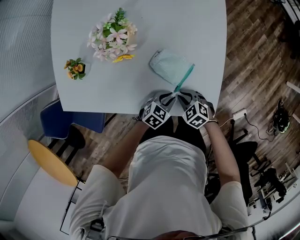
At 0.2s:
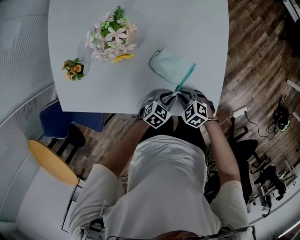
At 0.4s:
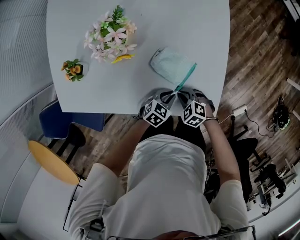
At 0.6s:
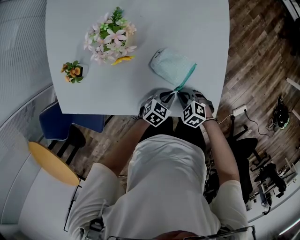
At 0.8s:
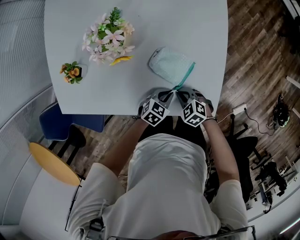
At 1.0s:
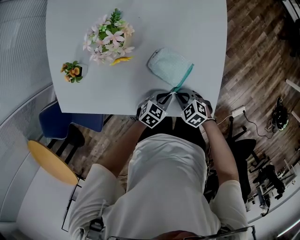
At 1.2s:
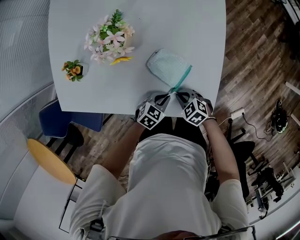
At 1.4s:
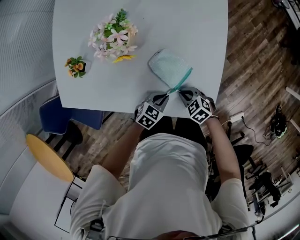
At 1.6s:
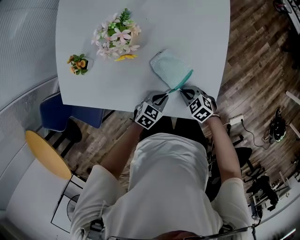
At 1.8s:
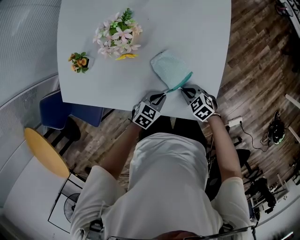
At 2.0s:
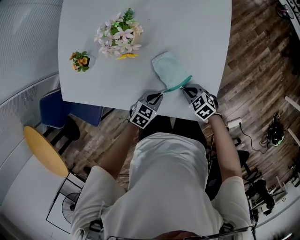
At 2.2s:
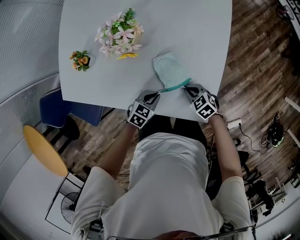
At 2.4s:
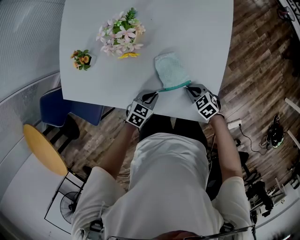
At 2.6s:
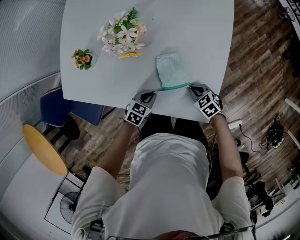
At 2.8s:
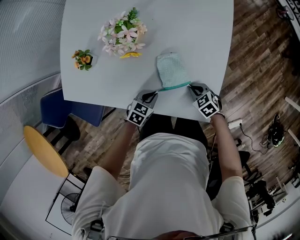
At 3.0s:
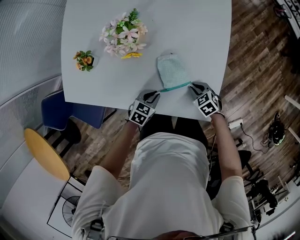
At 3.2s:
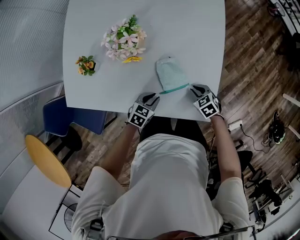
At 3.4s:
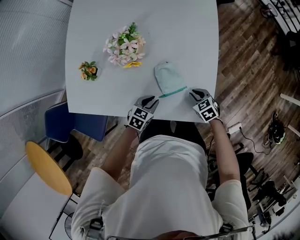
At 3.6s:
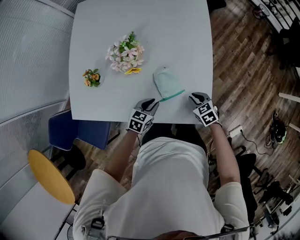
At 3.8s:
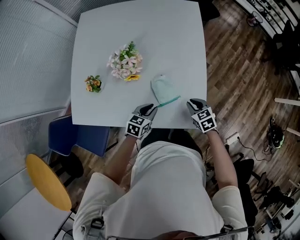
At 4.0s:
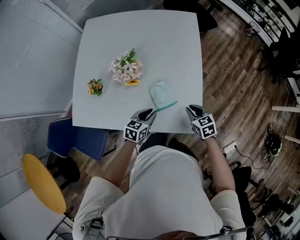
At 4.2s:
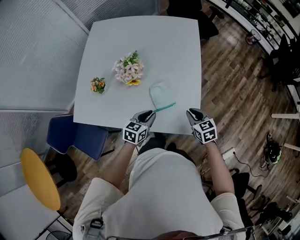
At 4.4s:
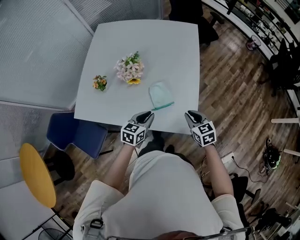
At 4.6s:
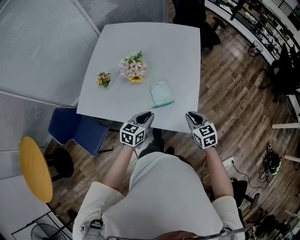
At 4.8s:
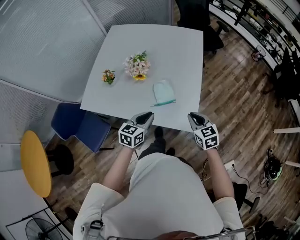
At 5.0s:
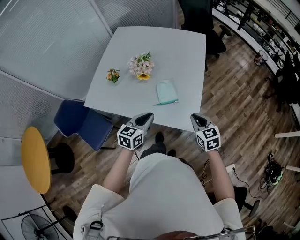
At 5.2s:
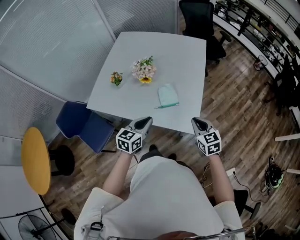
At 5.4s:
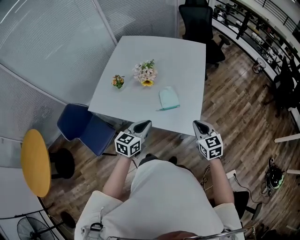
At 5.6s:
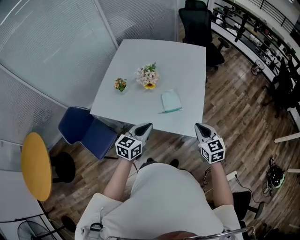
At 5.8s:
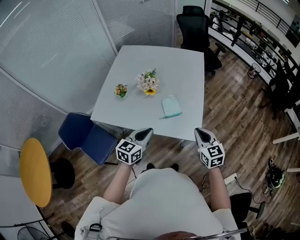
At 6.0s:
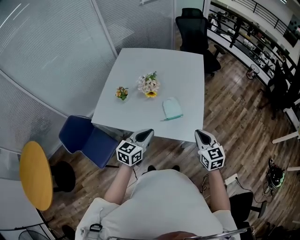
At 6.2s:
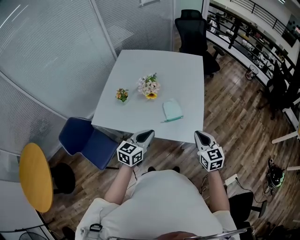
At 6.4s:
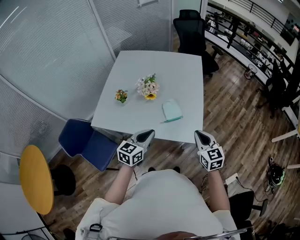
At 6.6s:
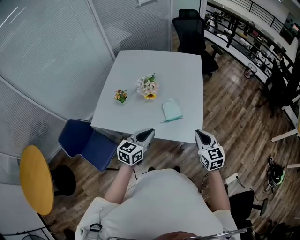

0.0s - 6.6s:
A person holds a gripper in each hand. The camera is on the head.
0.0s - 1.6s: The grippers make only small movements.
1.6s - 3.2s: The left gripper ends up about 5 cm from where it was. The right gripper changes place by about 5 cm.
3.2s - 5.0s: The two grippers go about 35 cm upward and backward. The left gripper rotates some 30 degrees. The right gripper tips its fingers upward by about 30 degrees.
5.0s - 6.6s: The left gripper is displaced upward, to the left and backward by some 10 cm, while the right gripper shifts some 15 cm upward, backward and to the left.

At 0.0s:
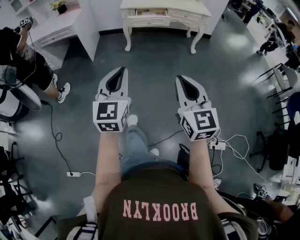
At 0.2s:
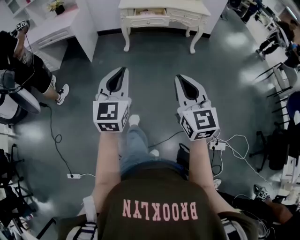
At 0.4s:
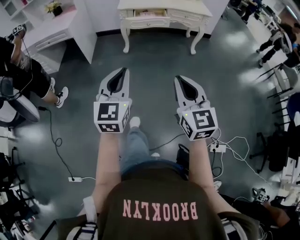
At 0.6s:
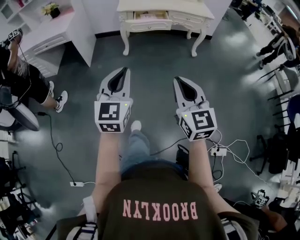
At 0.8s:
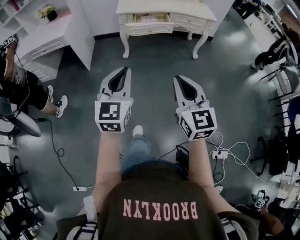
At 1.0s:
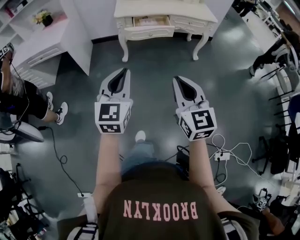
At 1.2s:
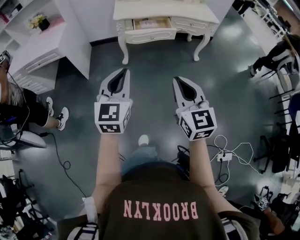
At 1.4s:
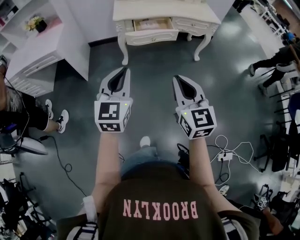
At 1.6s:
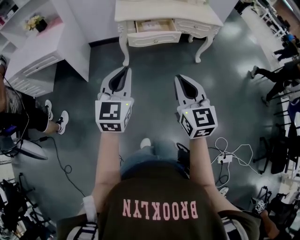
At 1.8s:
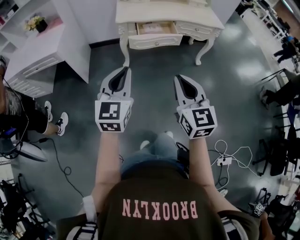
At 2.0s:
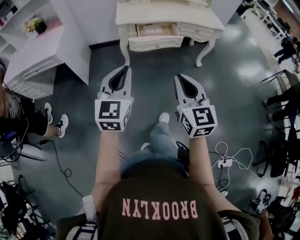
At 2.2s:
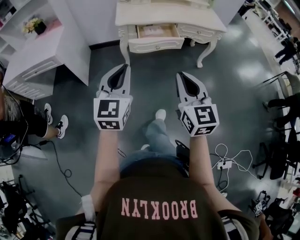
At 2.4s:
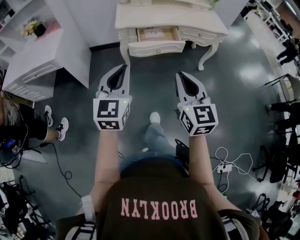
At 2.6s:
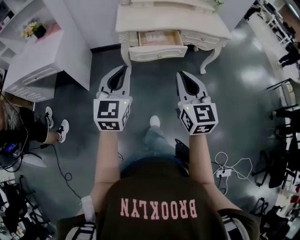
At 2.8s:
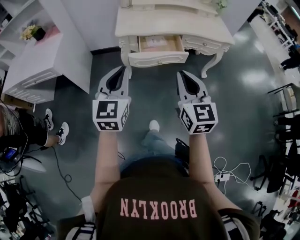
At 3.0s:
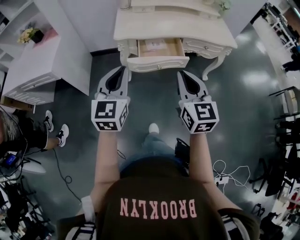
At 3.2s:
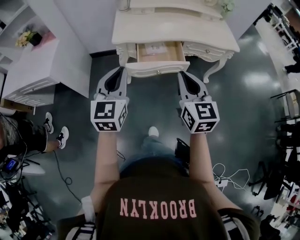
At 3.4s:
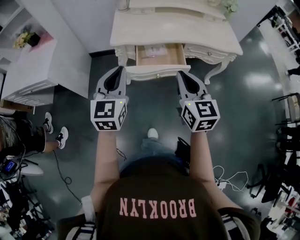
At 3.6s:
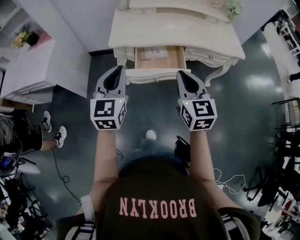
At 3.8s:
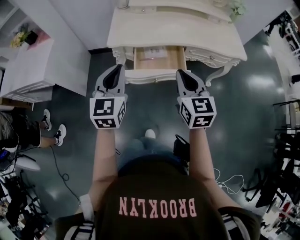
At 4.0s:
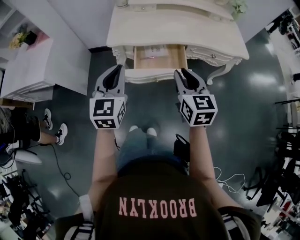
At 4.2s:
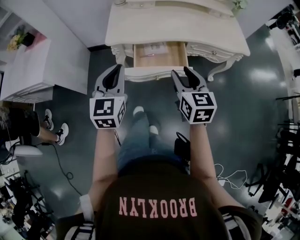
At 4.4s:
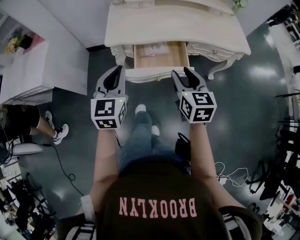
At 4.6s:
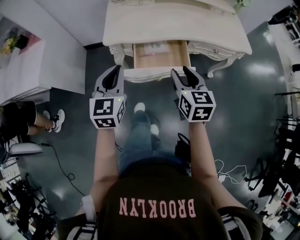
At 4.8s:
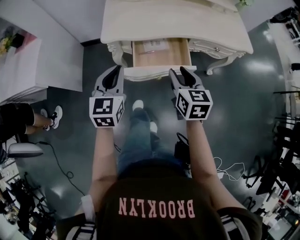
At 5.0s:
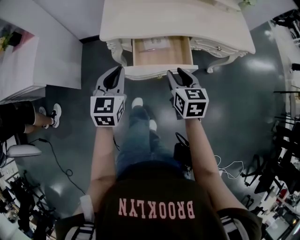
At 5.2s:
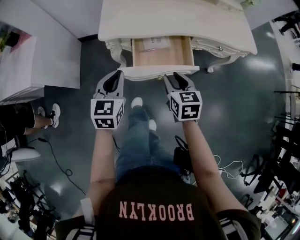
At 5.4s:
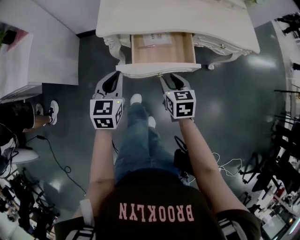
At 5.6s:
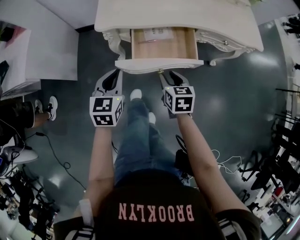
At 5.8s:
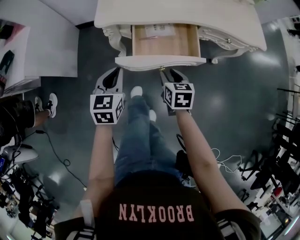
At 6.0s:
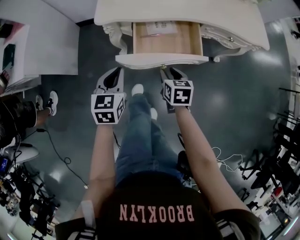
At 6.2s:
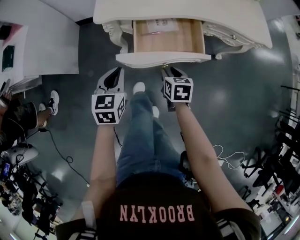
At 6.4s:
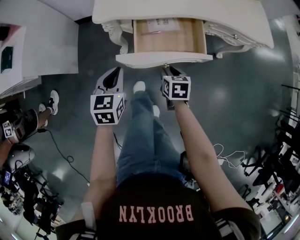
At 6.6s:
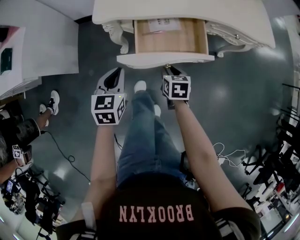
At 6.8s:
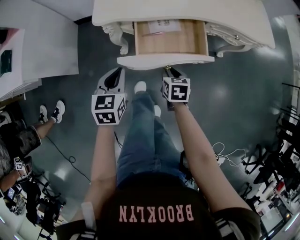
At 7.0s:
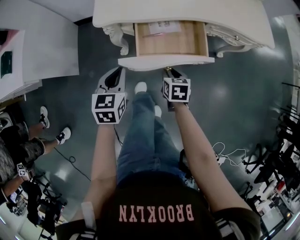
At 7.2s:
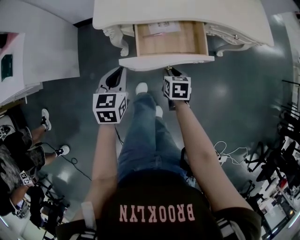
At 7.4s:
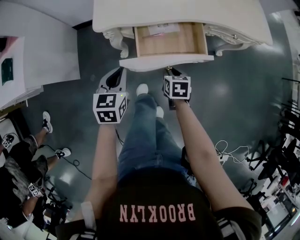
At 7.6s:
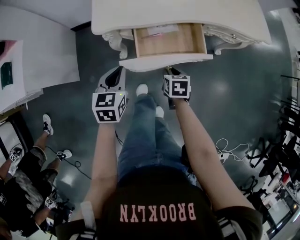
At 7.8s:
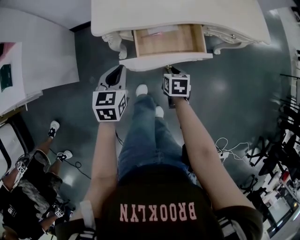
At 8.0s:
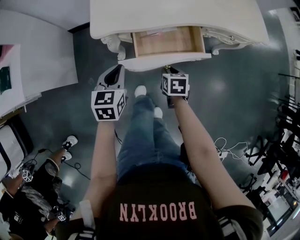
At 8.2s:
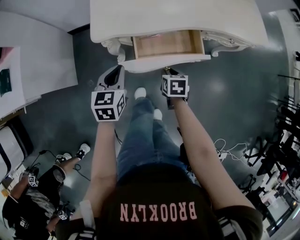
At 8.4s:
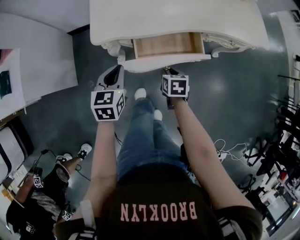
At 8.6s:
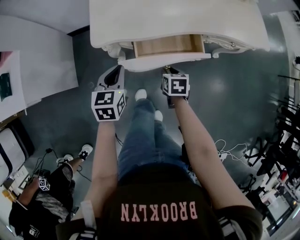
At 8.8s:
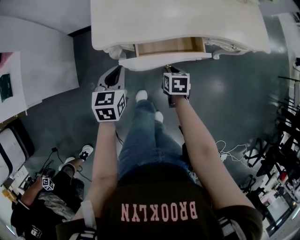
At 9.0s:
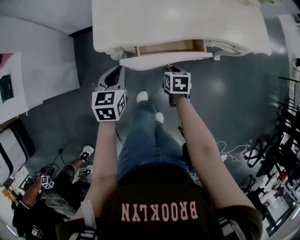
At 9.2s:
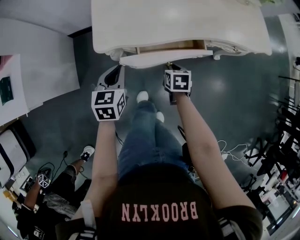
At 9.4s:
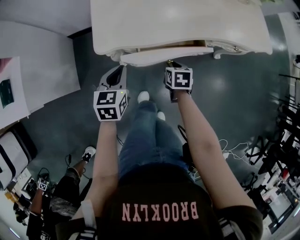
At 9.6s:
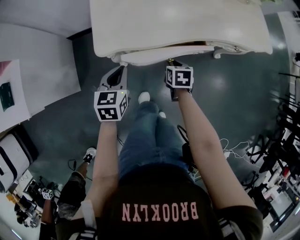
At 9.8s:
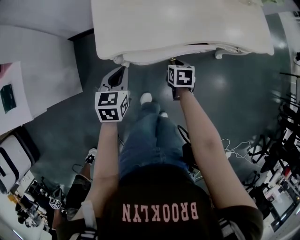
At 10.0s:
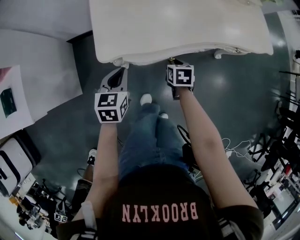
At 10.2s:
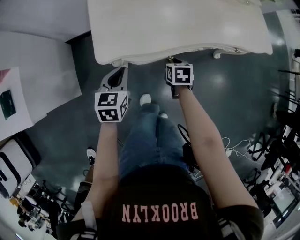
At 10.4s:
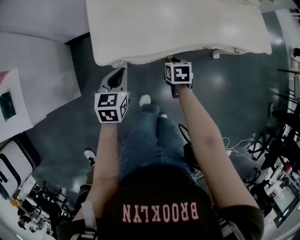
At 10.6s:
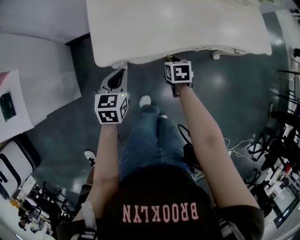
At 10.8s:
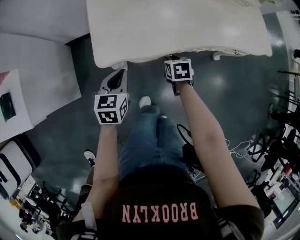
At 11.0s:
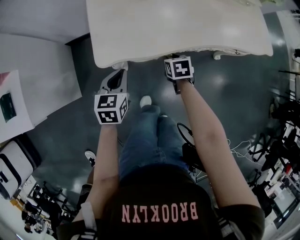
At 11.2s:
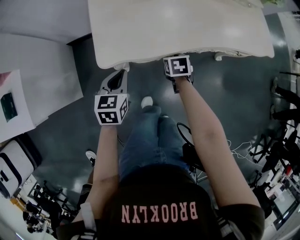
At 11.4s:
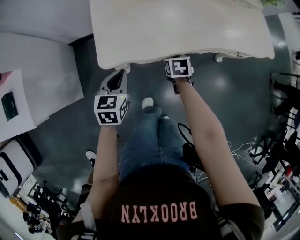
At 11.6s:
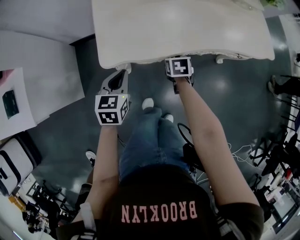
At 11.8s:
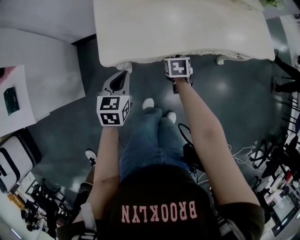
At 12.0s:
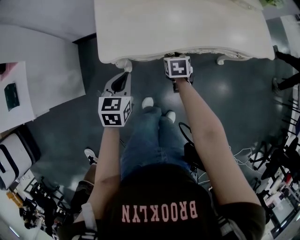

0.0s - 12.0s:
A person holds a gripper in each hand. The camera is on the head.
0.0s - 1.6s: Both grippers travel together forward, approximately 40 cm.
1.6s - 3.0s: The grippers both shift forward by roughly 25 cm.
3.0s - 4.4s: The two grippers go roughly 20 cm forward and downward. The right gripper opens its fingers.
4.4s - 6.0s: The grippers both shift downward by some 20 cm. The right gripper turns by about 30 degrees; the left gripper rotates approximately 20 degrees.
6.0s - 7.6s: The right gripper is displaced downward by about 5 cm, while the left gripper goes about 5 cm forward.
7.6s - 9.0s: Both grippers travel together forward, about 10 cm.
9.0s - 10.4s: The right gripper is displaced forward by some 5 cm.
10.4s - 12.0s: The grippers stay close to where they were, moving slightly.

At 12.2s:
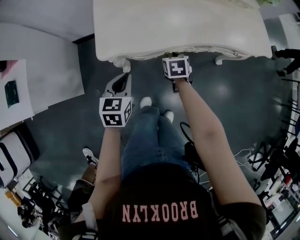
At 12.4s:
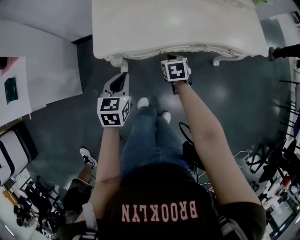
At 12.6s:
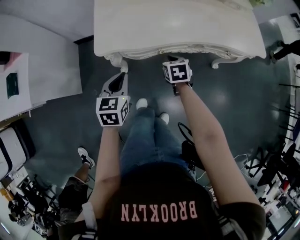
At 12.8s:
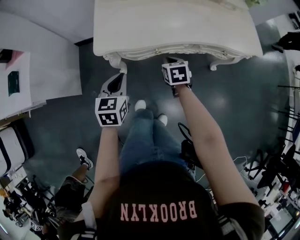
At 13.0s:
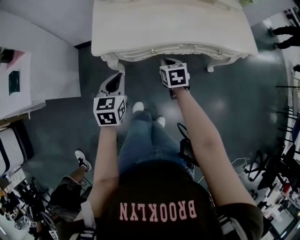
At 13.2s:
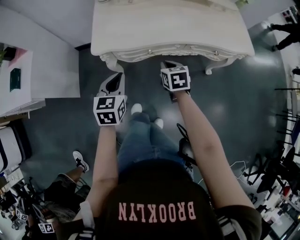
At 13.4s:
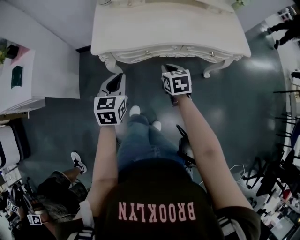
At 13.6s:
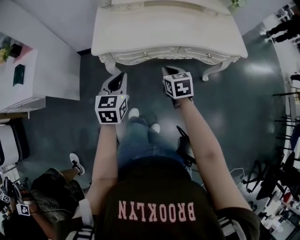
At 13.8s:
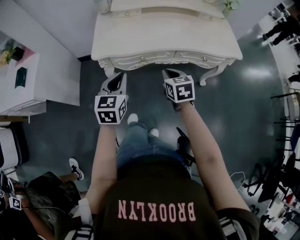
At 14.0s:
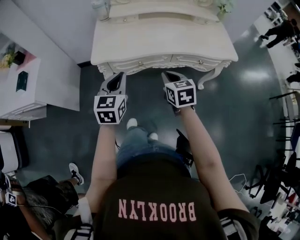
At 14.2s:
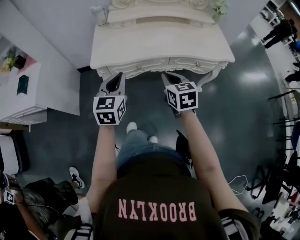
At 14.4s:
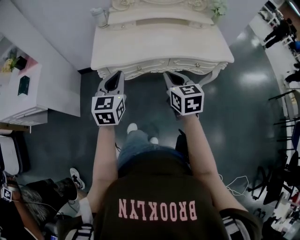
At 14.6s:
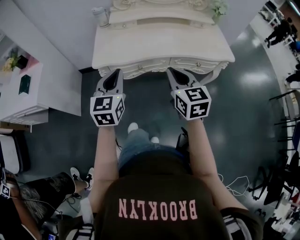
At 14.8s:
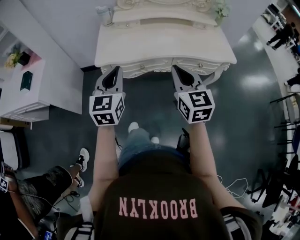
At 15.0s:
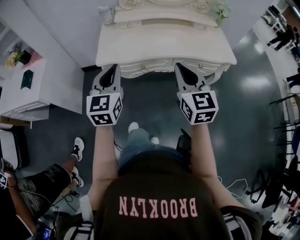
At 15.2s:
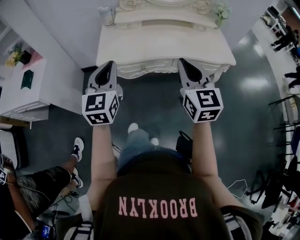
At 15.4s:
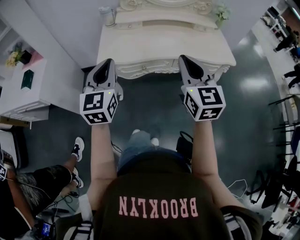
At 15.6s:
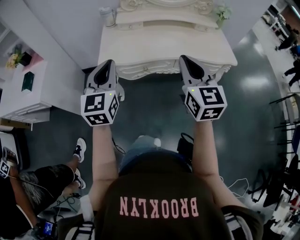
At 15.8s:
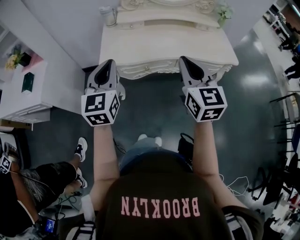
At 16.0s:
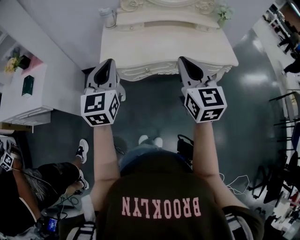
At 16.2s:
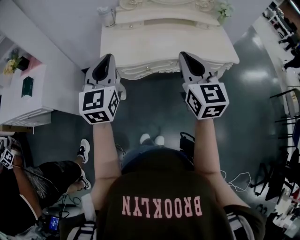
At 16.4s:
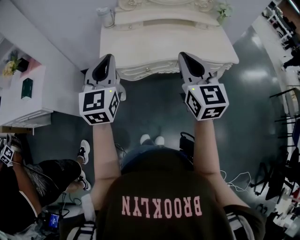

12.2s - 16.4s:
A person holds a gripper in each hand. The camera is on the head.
12.2s - 13.6s: The two grippers go approximately 20 cm upward, backward and to the right. The right gripper rotates some 20 degrees, and closes.
13.6s - 15.0s: The left gripper travels upward by about 15 cm, and swivels about 20 degrees; the right gripper travels upward by roughly 25 cm, and tilts its fingers some 30 degrees upward.
15.0s - 16.4s: The right gripper travels upward by some 5 cm. The left gripper shifts about 10 cm upward and forward.

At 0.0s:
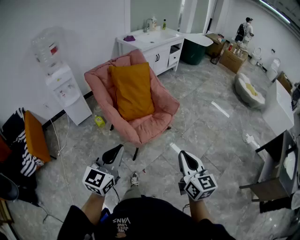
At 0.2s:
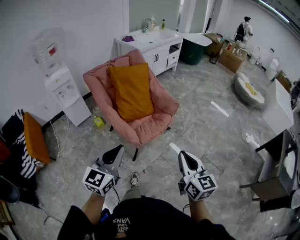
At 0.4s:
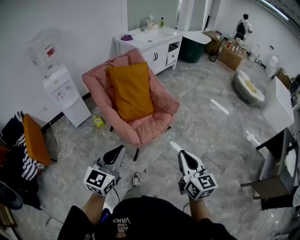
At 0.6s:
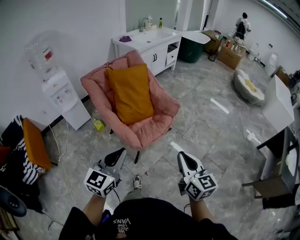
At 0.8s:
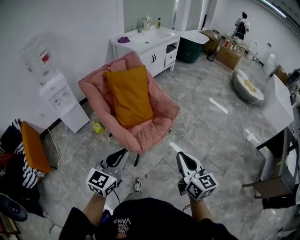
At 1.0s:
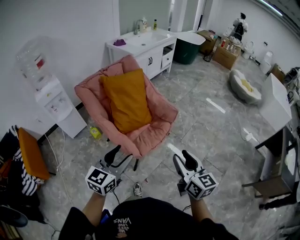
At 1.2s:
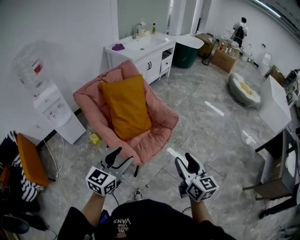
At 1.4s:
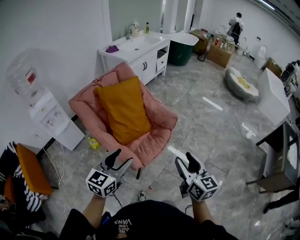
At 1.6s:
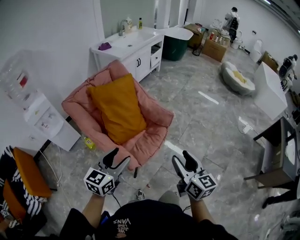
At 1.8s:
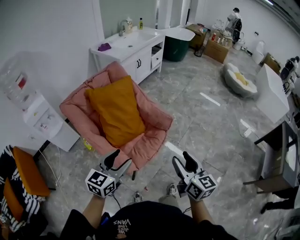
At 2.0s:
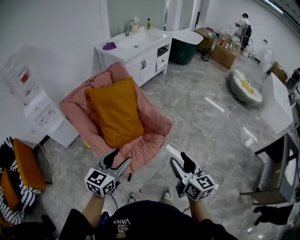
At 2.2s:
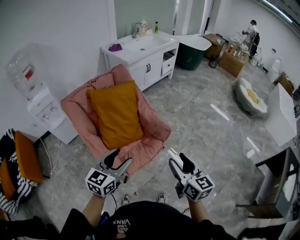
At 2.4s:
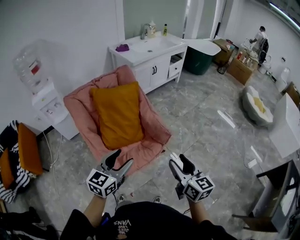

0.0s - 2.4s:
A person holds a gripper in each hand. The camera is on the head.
0.0s - 1.2s: The grippers both shift forward by approximately 15 cm. The right gripper opens up; the left gripper opens.
1.2s - 2.4s: Both grippers move forward and to the right, some 20 cm.
